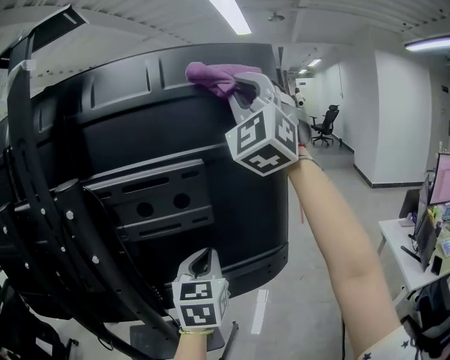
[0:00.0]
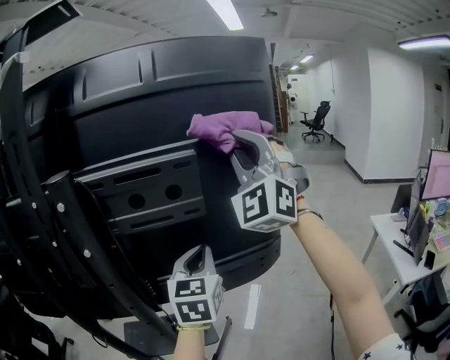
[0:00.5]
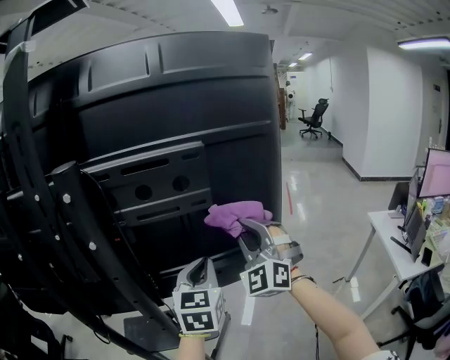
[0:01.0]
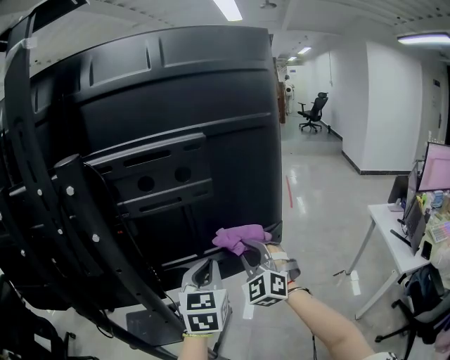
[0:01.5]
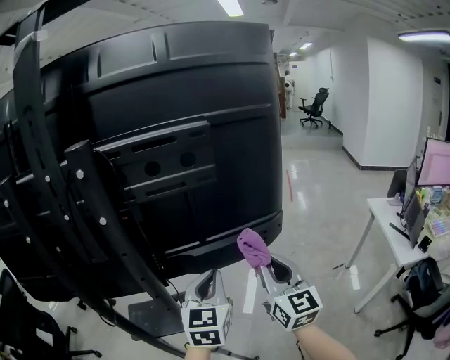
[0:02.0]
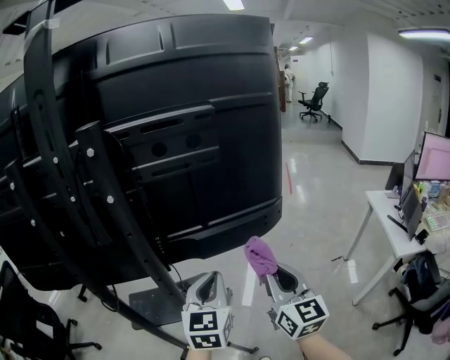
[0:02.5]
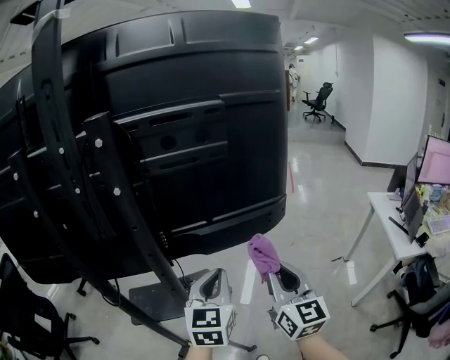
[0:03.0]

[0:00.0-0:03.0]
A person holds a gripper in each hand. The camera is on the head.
0:00.0 to 0:01.5: The left gripper is displaced downward by approximately 10 cm; the right gripper travels downward by approximately 50 cm, and angles its fingers downward, by some 30 degrees.
0:01.5 to 0:03.0: The left gripper is displaced backward and downward by approximately 10 cm; the right gripper shifts about 20 cm backward, and twists roughly 60 degrees clockwise, seen from behind.

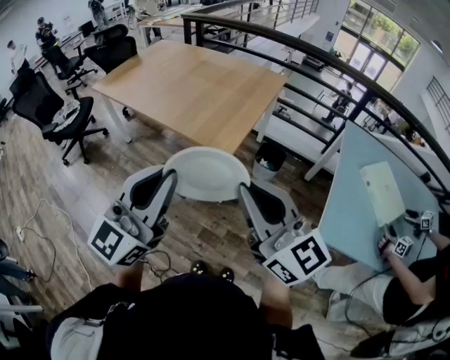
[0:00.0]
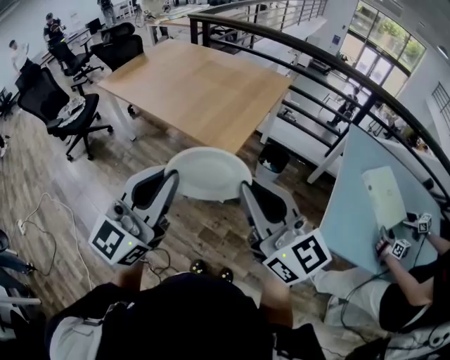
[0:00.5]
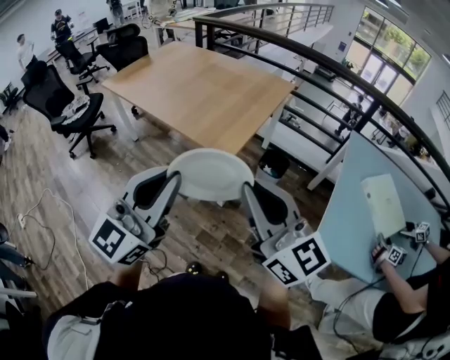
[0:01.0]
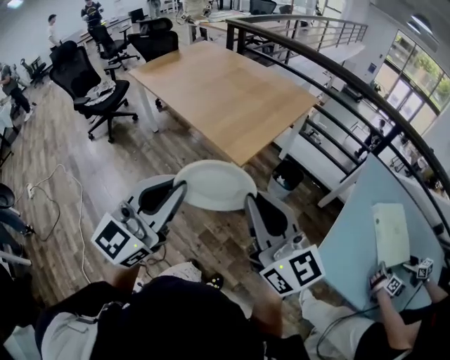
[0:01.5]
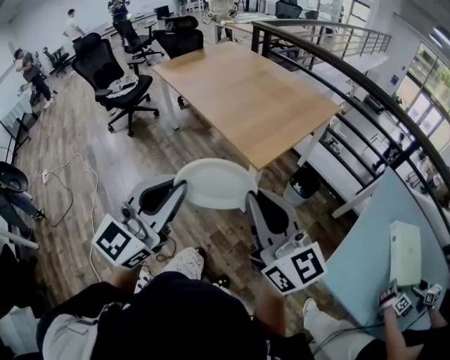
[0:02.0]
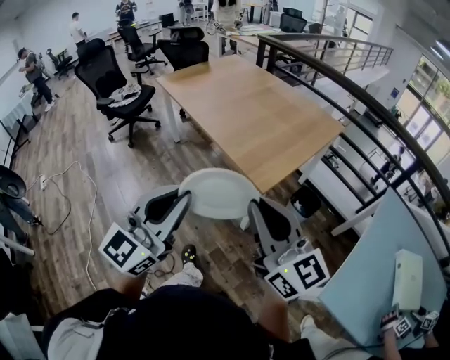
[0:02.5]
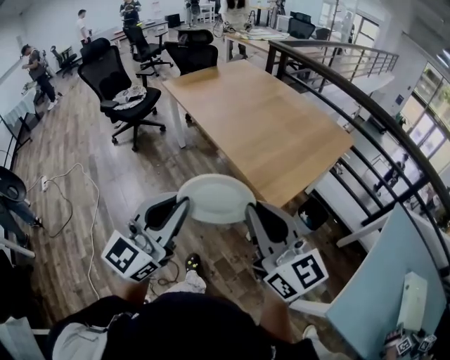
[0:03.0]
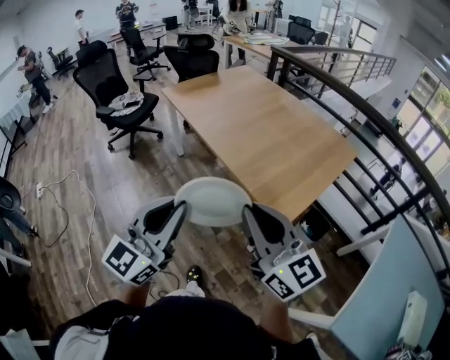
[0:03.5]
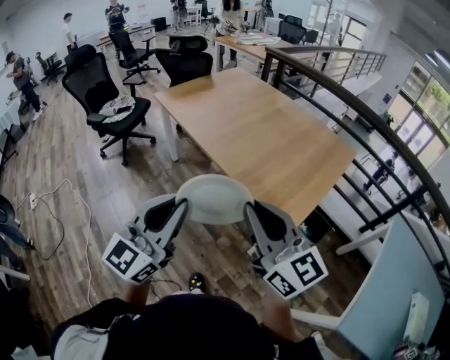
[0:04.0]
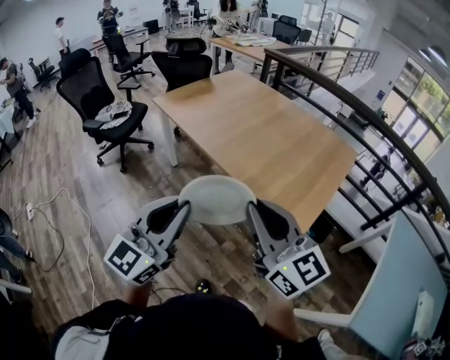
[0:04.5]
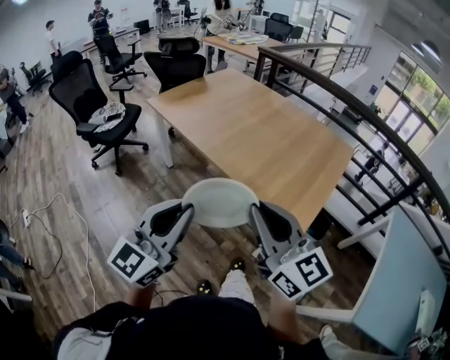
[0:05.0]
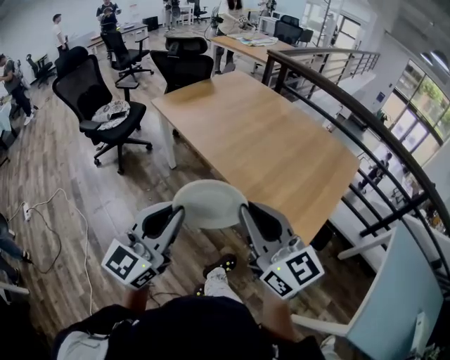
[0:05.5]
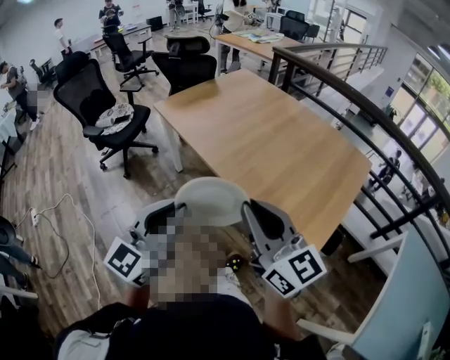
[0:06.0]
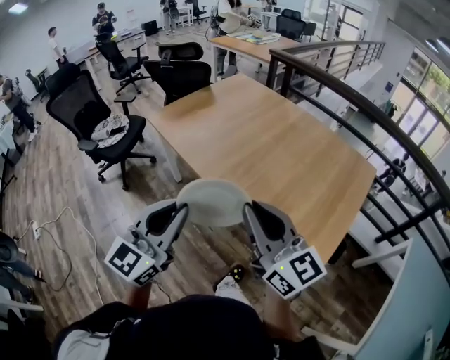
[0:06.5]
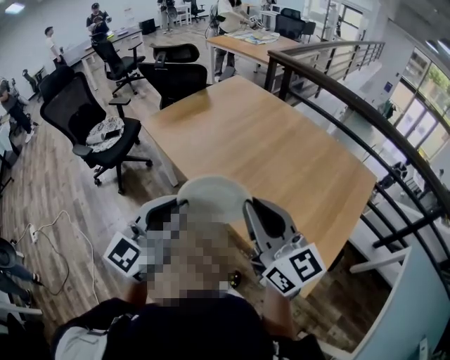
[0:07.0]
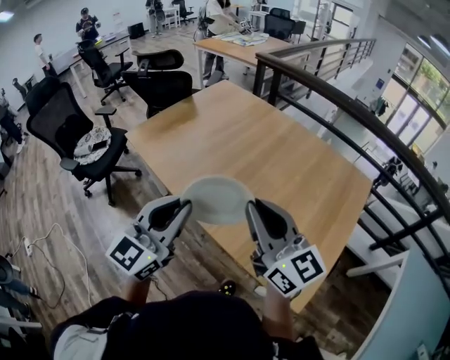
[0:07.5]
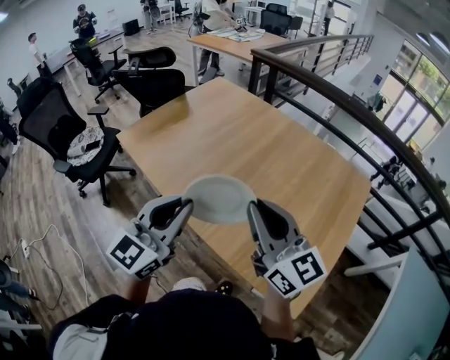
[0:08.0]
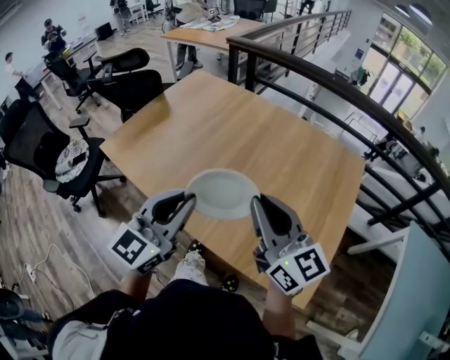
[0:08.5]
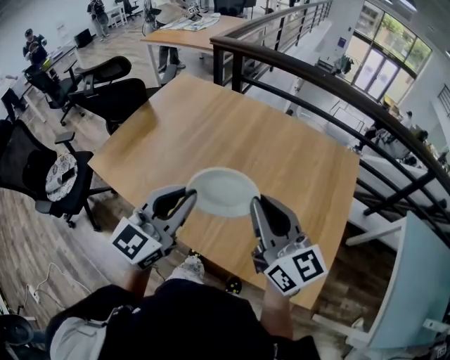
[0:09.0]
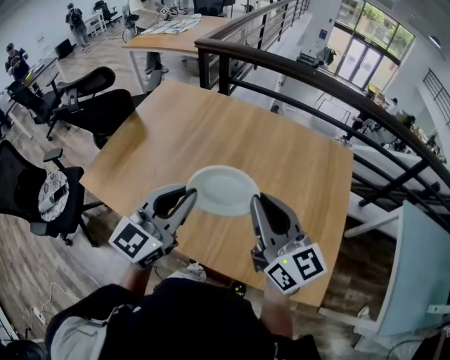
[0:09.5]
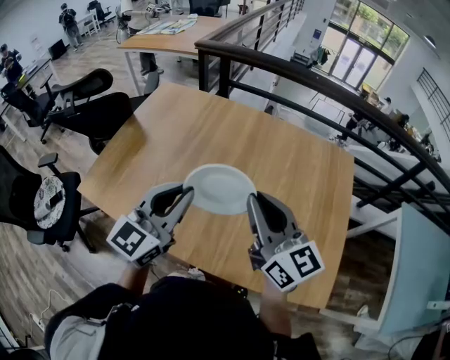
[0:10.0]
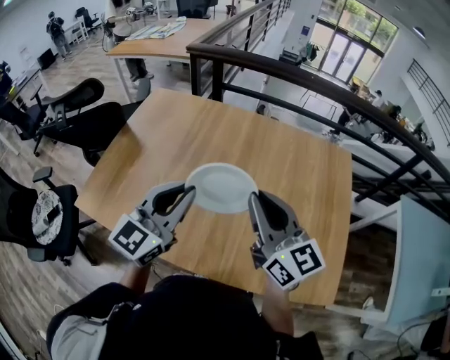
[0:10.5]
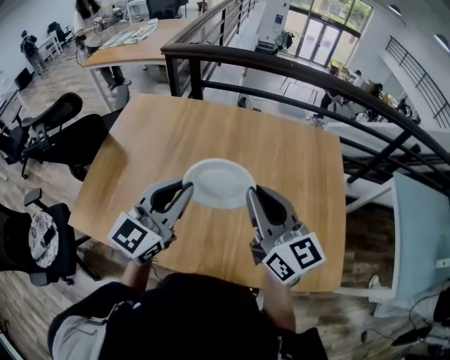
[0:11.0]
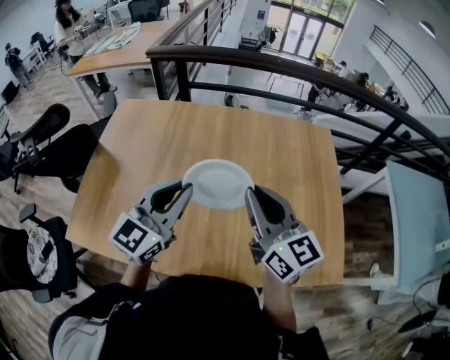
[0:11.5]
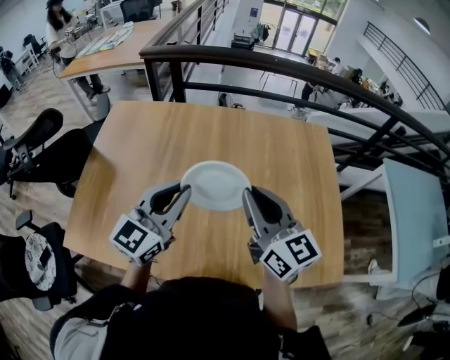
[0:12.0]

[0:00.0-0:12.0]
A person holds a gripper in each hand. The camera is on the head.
0:00.0 to 0:02.0: The left gripper shifts by some 5 cm.
0:02.0 to 0:04.0: The two grippers go roughly 30 cm forward and to the left.
0:04.0 to 0:06.0: Both grippers move forward and to the left, roughly 15 cm.
0:06.0 to 0:08.0: The two grippers go roughly 30 cm forward.
0:08.0 to 0:10.0: Both grippers move forward, approximately 20 cm. The right gripper rotates some 20 degrees. Meanwhile the left gripper rotates about 20 degrees.
0:10.0 to 0:12.0: The two grippers go approximately 10 cm forward.

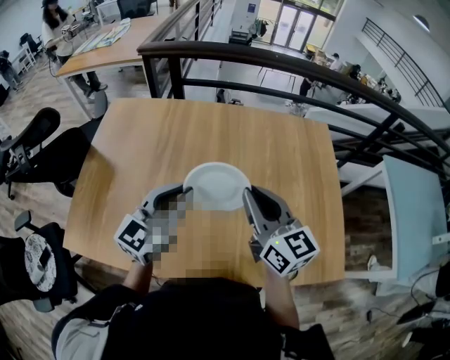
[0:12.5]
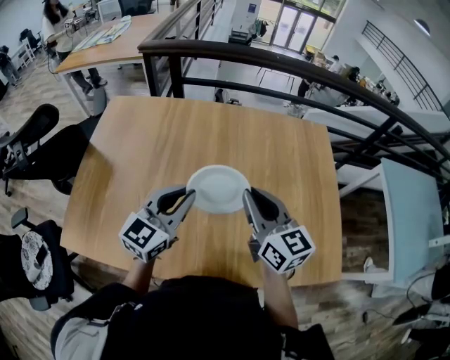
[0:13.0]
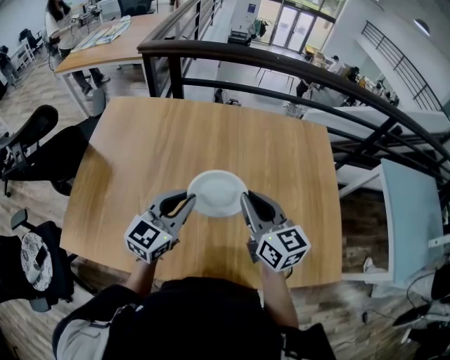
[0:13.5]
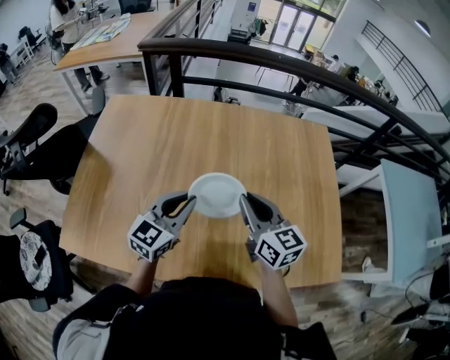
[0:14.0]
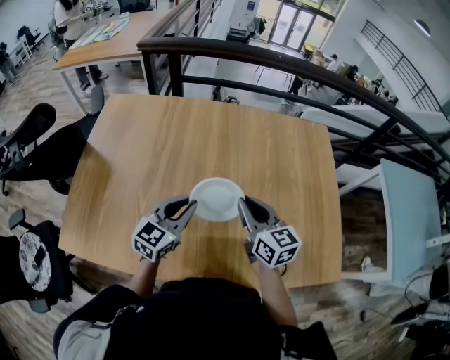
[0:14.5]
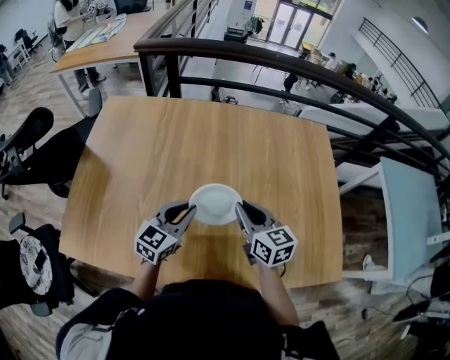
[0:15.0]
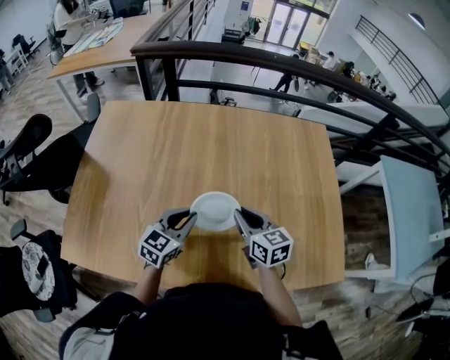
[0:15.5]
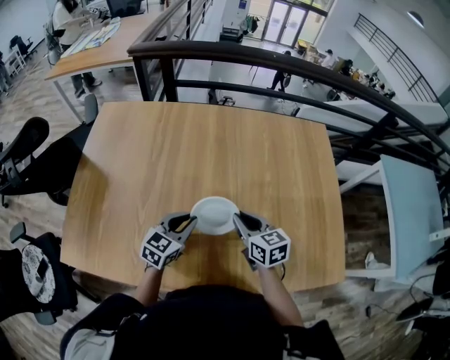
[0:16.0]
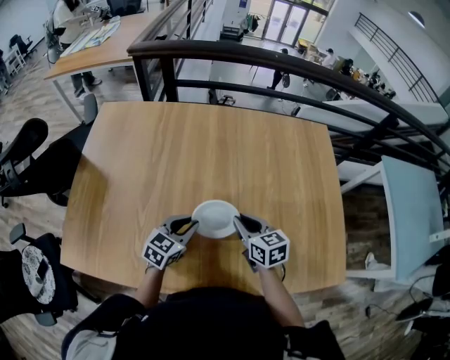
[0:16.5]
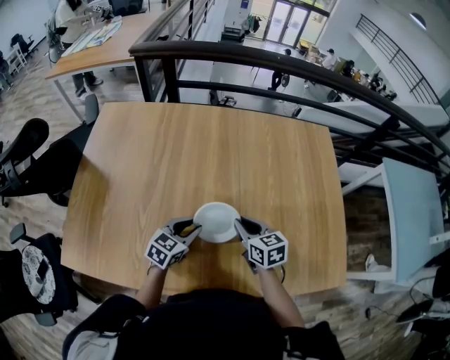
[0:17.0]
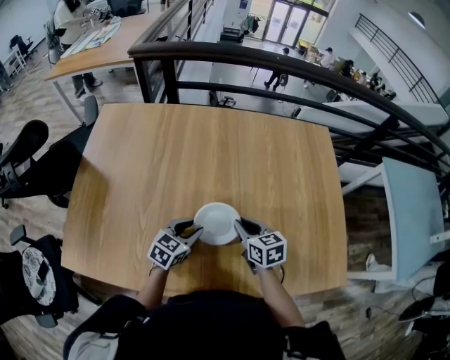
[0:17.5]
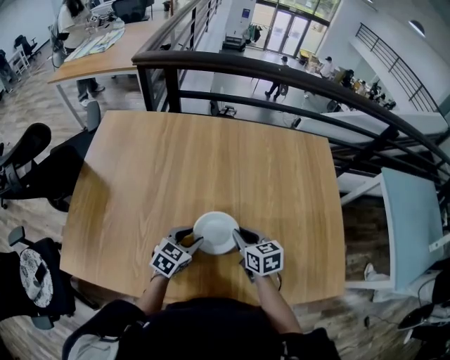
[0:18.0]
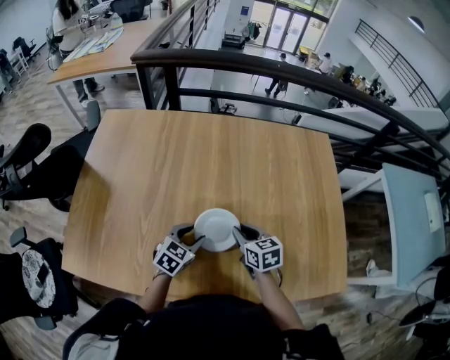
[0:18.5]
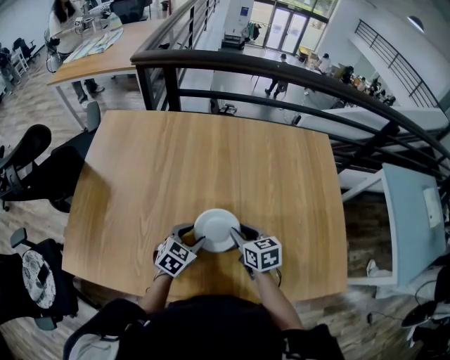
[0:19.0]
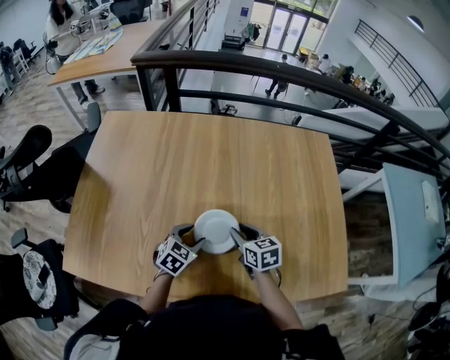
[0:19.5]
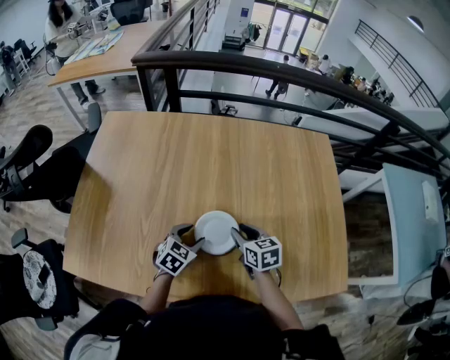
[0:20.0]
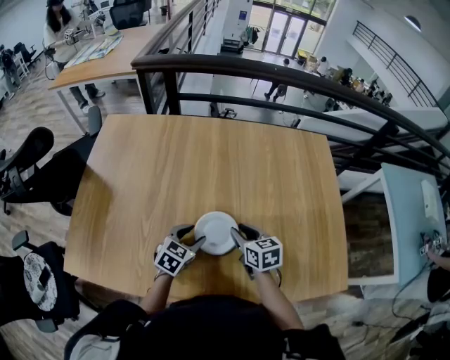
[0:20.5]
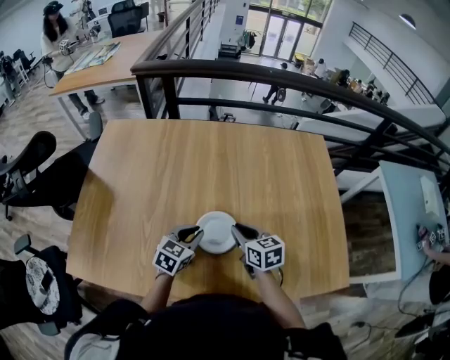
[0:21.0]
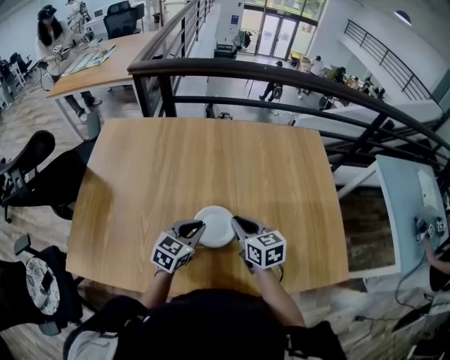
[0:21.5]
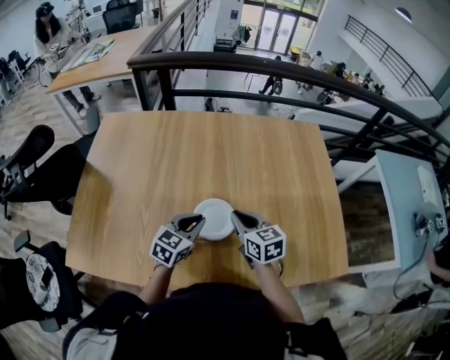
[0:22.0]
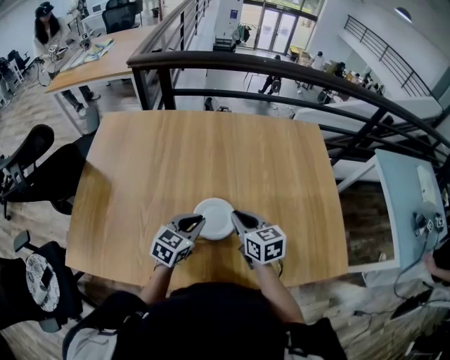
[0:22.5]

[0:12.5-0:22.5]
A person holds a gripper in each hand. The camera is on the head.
0:12.5 to 0:14.5: The grippers both shift downward by some 10 cm.
0:14.5 to 0:16.5: Both grippers travel together downward, about 10 cm.
0:16.5 to 0:18.5: The left gripper opens its fingers.
0:18.5 to 0:20.5: The grippers move only a little.
0:20.5 to 0:22.5: The grippers both shift upward by approximately 5 cm. The left gripper closes its fingers. Meanwhile the right gripper closes up.

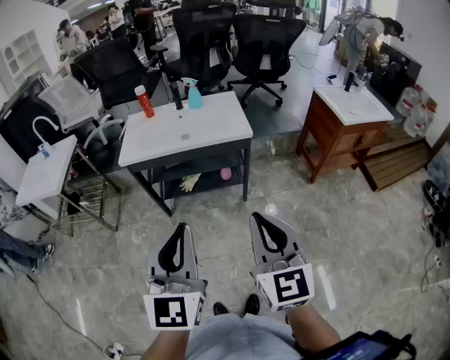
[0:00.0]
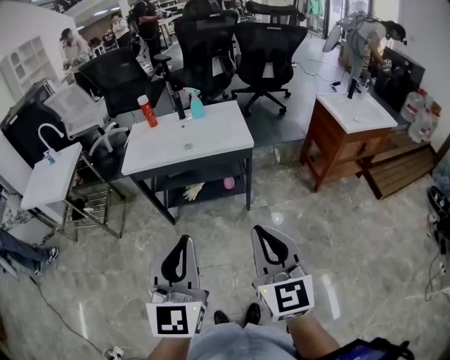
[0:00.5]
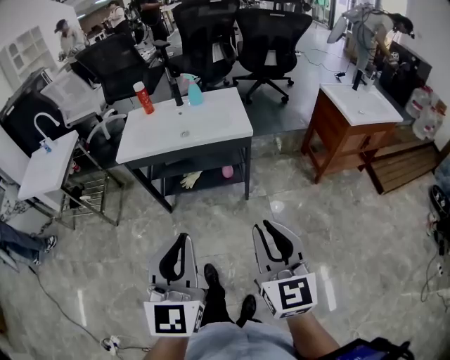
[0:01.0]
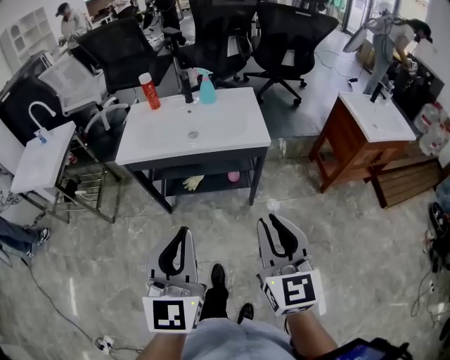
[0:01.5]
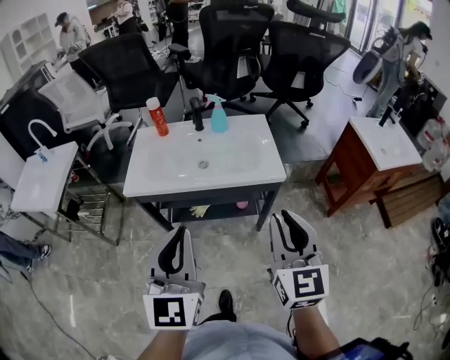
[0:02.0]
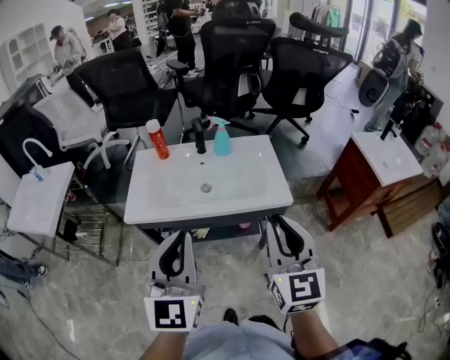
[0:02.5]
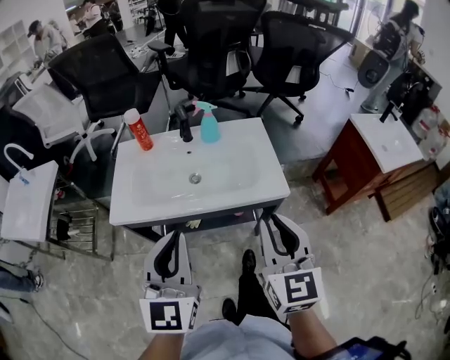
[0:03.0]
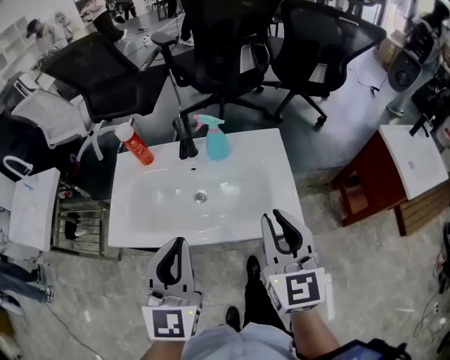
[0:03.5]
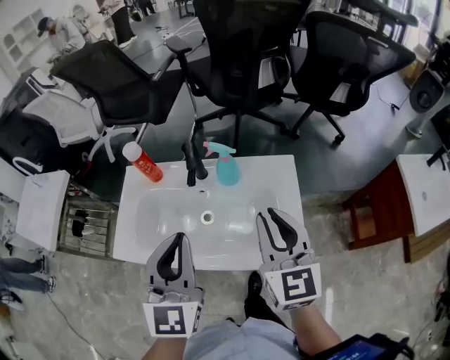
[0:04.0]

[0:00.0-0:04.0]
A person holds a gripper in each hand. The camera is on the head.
0:00.0 to 0:02.0: The grippers both shift forward by approximately 25 cm.
0:02.0 to 0:04.0: Both grippers travel together forward, about 40 cm.
